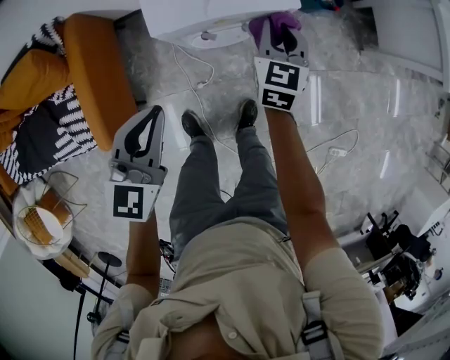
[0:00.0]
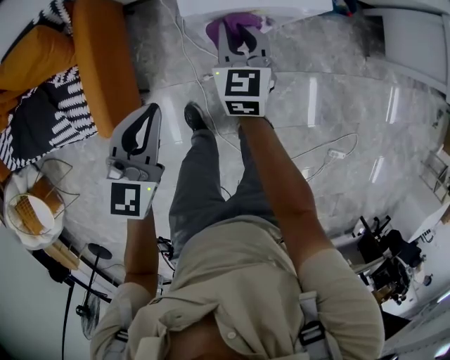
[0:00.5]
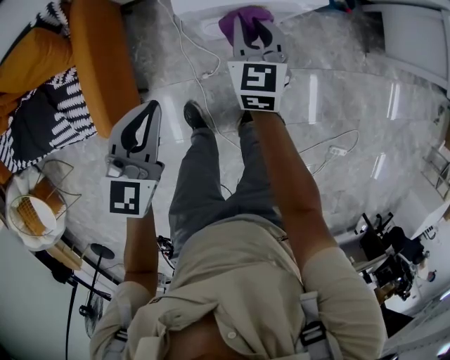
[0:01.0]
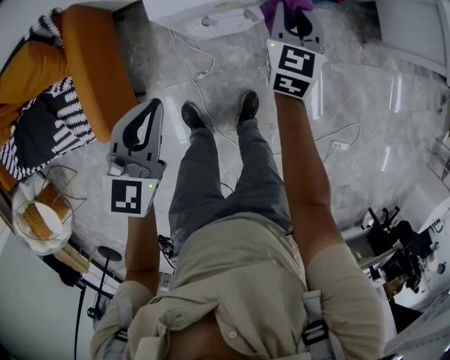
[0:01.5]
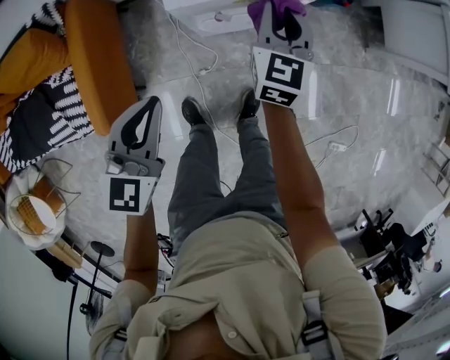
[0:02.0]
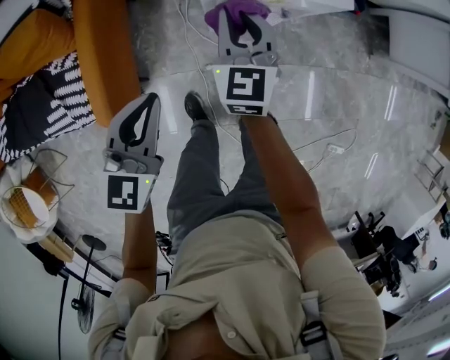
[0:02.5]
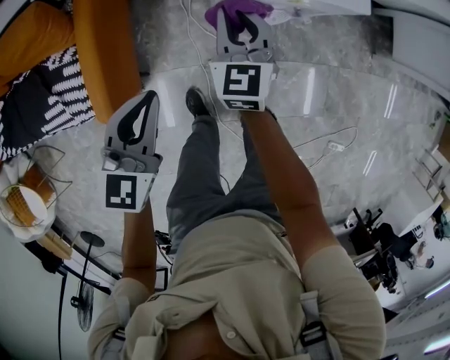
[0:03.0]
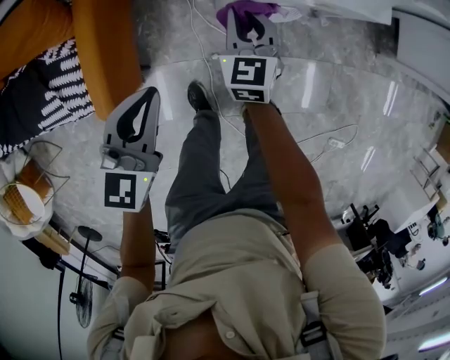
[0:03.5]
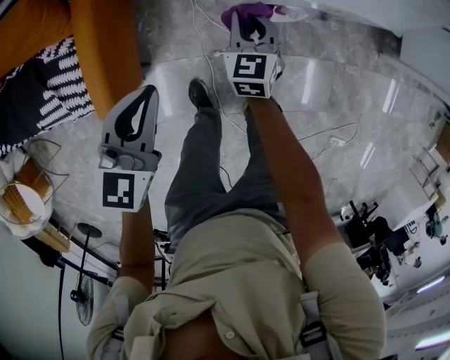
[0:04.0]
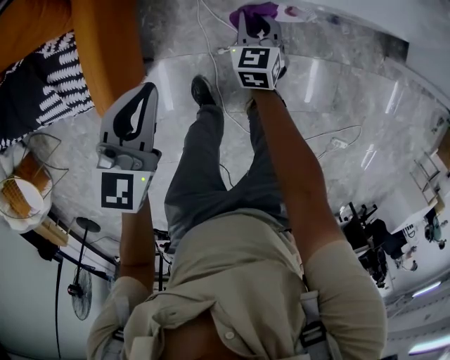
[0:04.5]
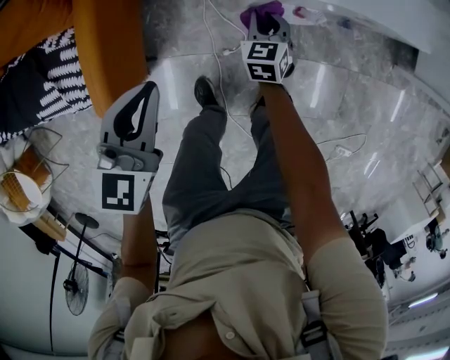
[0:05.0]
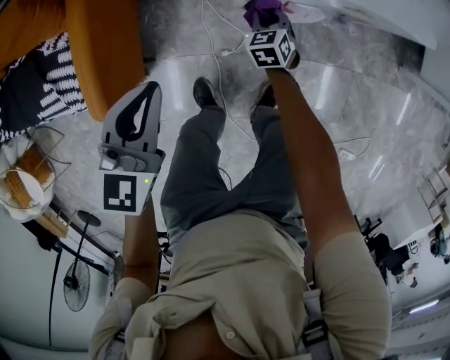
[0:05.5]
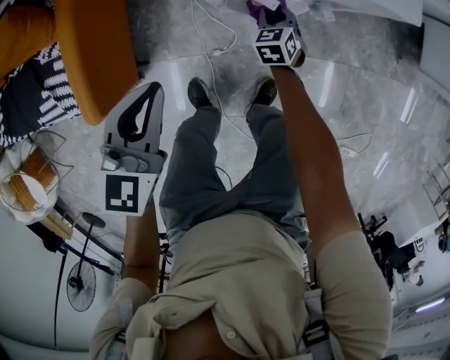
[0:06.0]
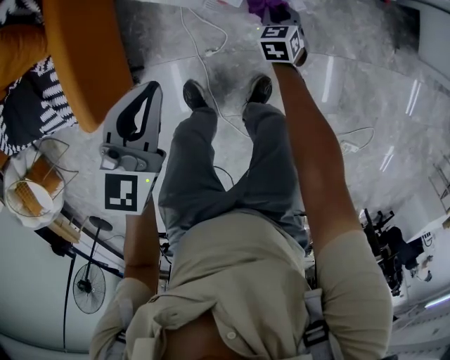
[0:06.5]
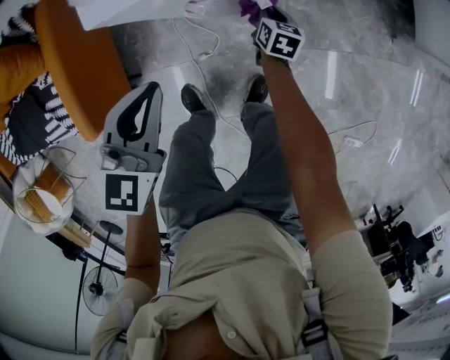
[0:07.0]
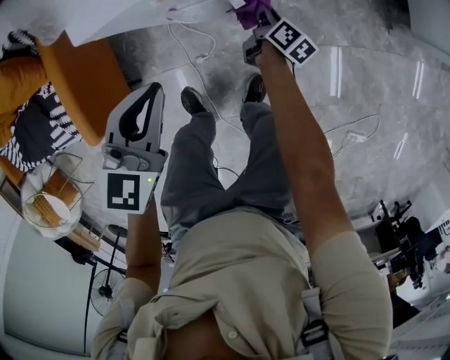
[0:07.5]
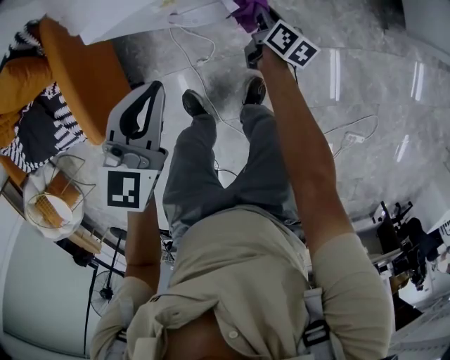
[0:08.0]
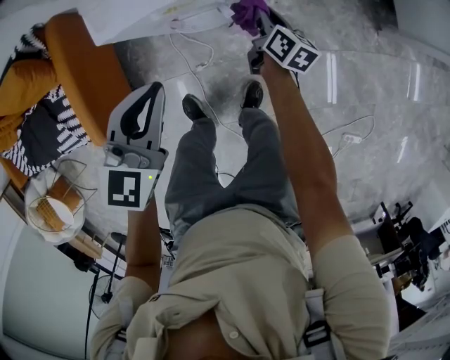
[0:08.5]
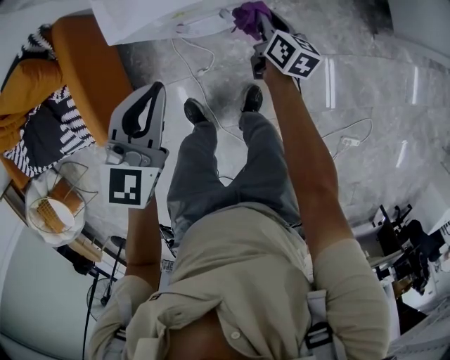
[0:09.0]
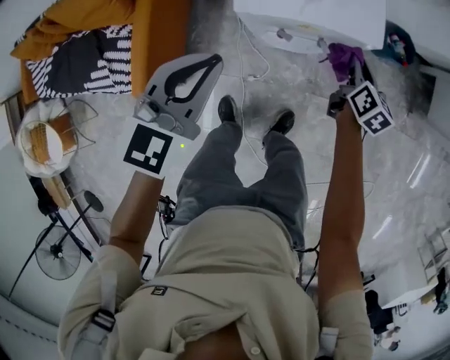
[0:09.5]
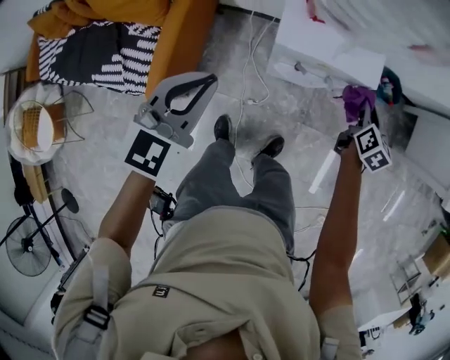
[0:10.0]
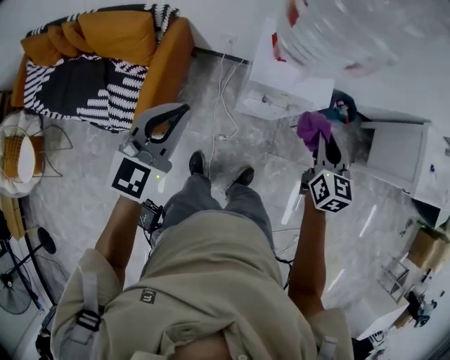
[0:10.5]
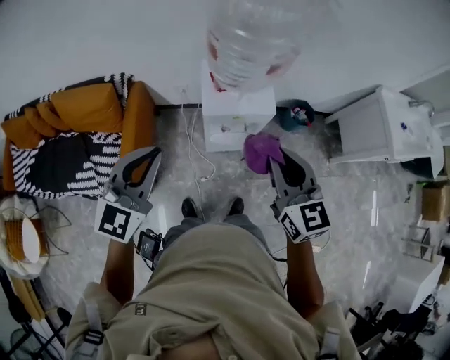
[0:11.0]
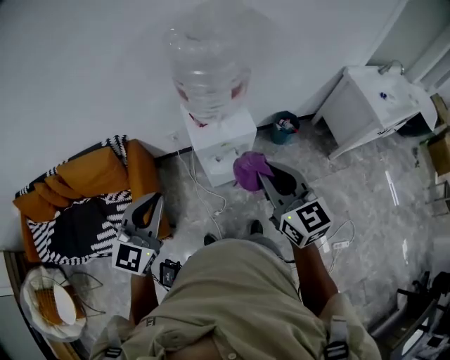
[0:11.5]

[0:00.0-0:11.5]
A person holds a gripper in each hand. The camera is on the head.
0:00.0 to 0:02.0: The right gripper goes left and right, roughly 15 cm each way, reversing 2 times.
0:02.0 to 0:04.0: The right gripper shifts roughly 25 cm to the left and downward, and rotates some 20 degrees. The left gripper travels to the left and downward by about 15 cm.
0:04.0 to 0:06.0: The left gripper travels to the right and downward by about 10 cm. The right gripper is displaced downward and to the right by some 25 cm.
0:06.0 to 0:07.5: Both grippers travel together to the right, some 15 cm. The right gripper twists about 80 degrees clockwise, seen from behind.
0:07.5 to 0:09.5: The left gripper shifts about 15 cm upward and to the left; the right gripper moves upward, roughly 25 cm, and turns by roughly 30 degrees.
0:09.5 to 0:11.5: The left gripper travels upward and backward by approximately 35 cm, and changes its angle by roughly 20 degrees. Meanwhile the right gripper is displaced upward and backward by roughly 60 cm, and turns by approximately 40 degrees.

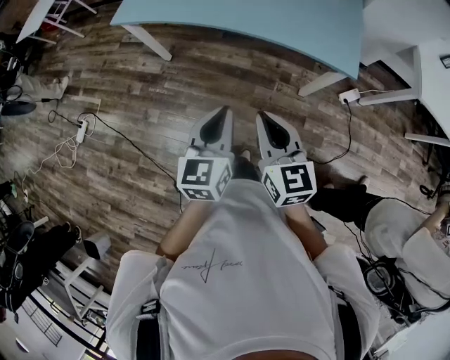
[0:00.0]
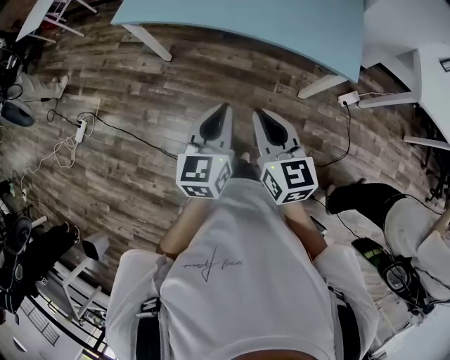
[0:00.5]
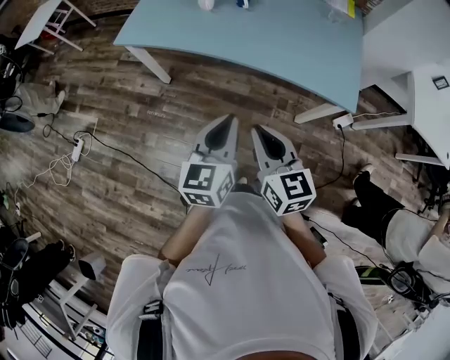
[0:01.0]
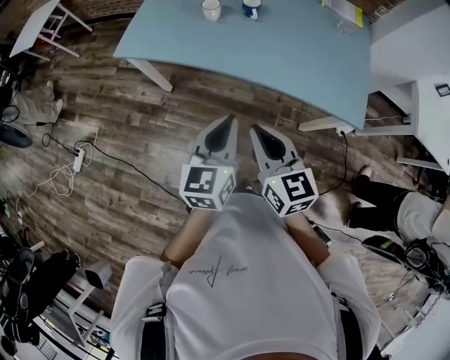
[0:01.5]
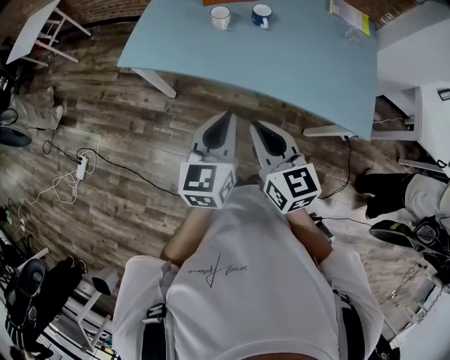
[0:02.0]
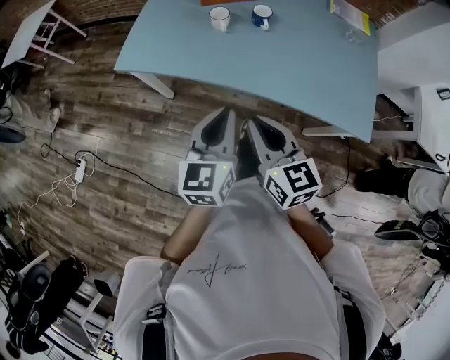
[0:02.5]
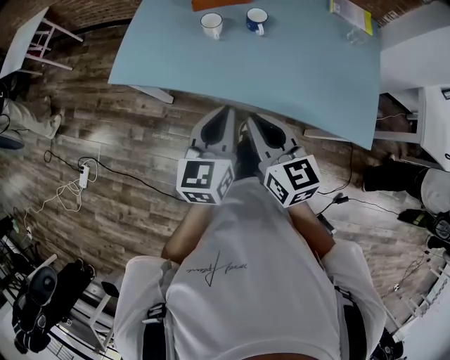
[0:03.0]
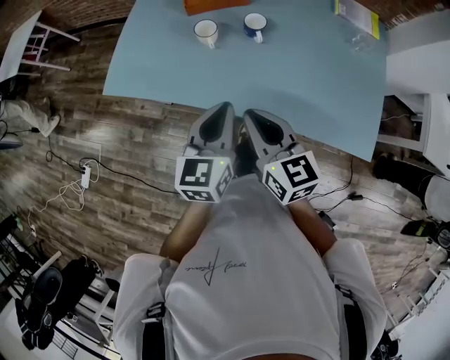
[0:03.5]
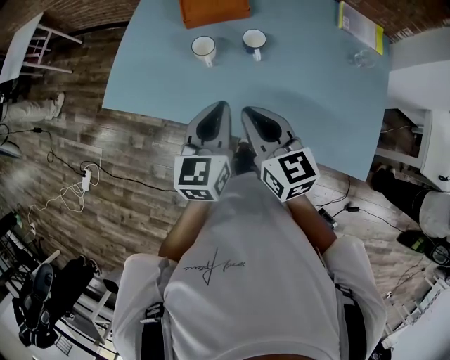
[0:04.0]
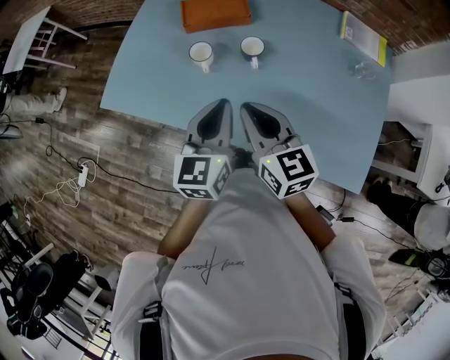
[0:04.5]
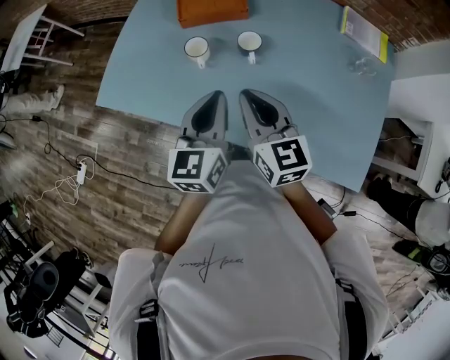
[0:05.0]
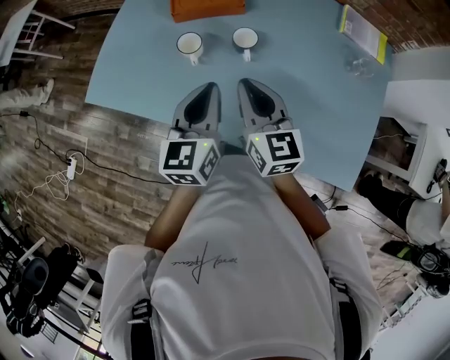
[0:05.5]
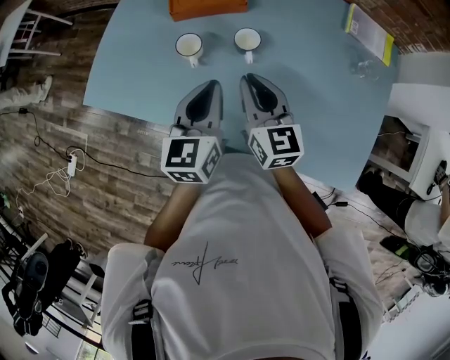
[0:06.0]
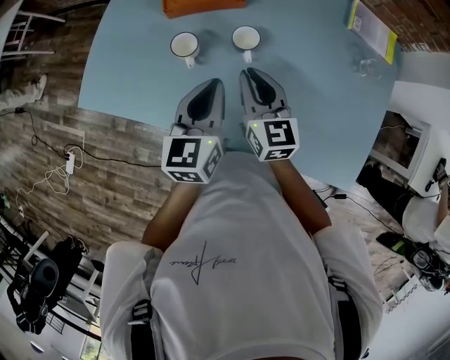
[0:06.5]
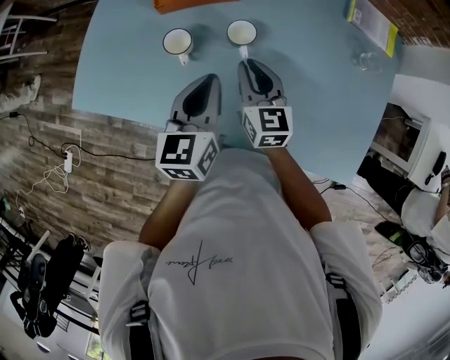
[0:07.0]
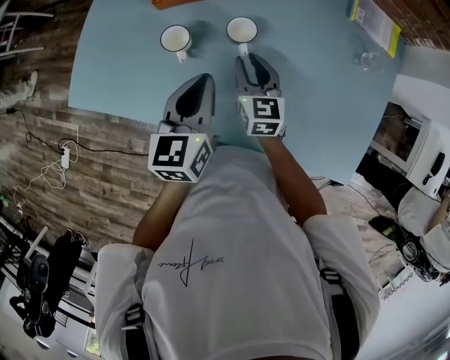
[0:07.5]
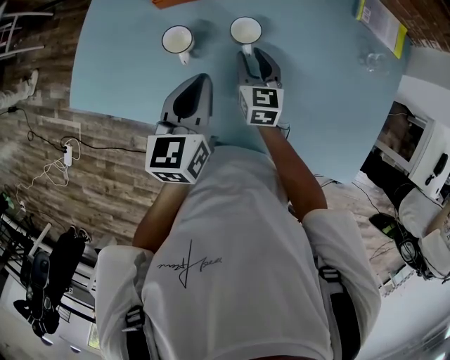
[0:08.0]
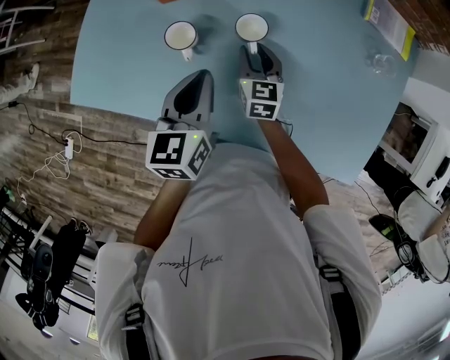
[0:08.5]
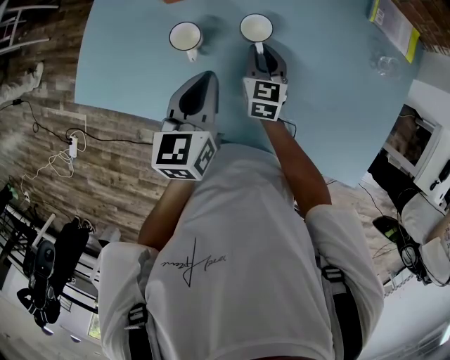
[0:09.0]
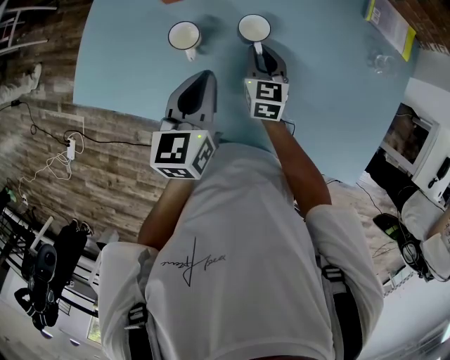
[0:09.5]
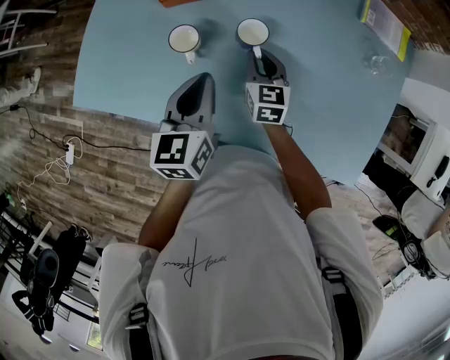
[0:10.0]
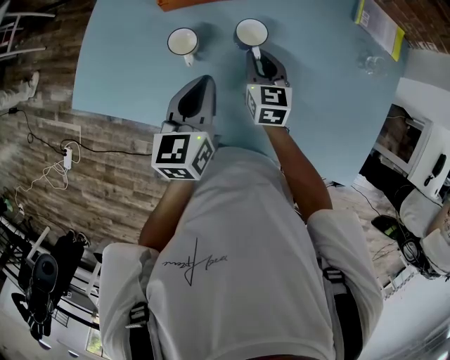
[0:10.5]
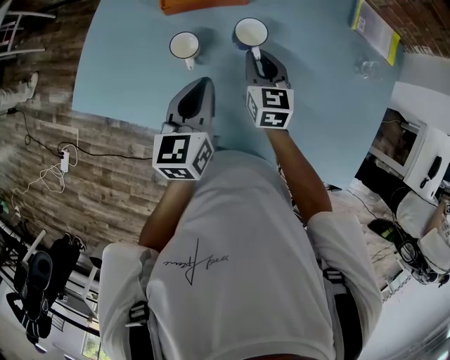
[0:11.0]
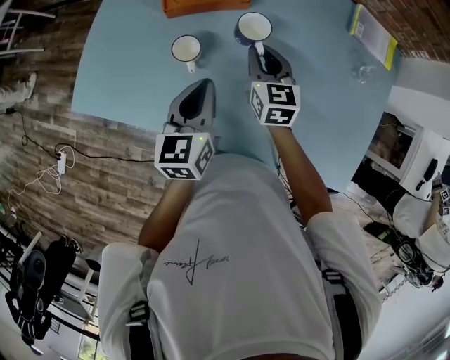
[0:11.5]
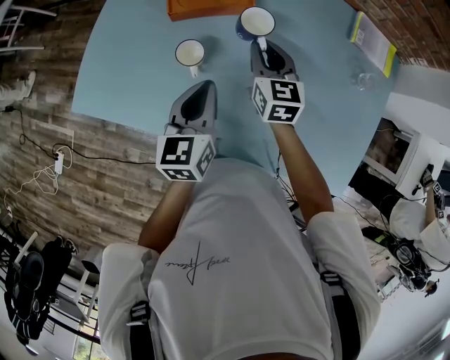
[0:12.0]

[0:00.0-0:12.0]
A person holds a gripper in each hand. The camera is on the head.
0:00.0 to 0:02.0: The grippers both shift forward and to the left by roughly 25 cm.
0:02.0 to 0:04.0: Both grippers move forward, roughly 20 cm.
0:04.0 to 0:06.0: The left gripper shifts roughly 10 cm forward, while the right gripper is displaced forward and to the right by approximately 10 cm.
0:06.0 to 0:08.0: The right gripper travels downward and forward by about 15 cm, and opens its fingers.
0:08.0 to 0:10.0: The grippers make only small movements.
0:10.0 to 0:12.0: The right gripper heads upward and forward, covering about 10 cm.

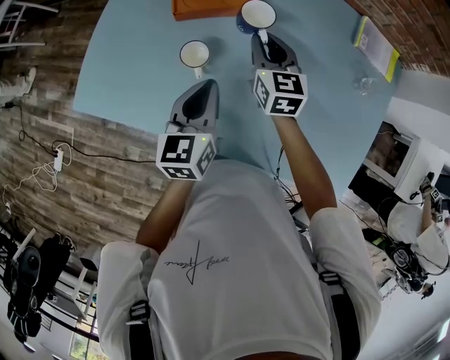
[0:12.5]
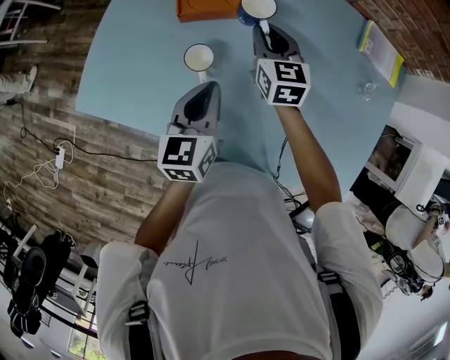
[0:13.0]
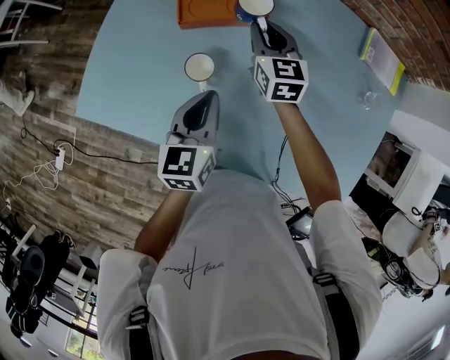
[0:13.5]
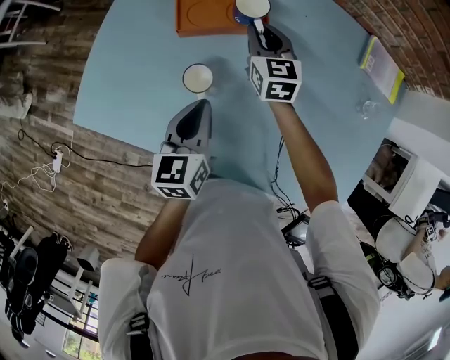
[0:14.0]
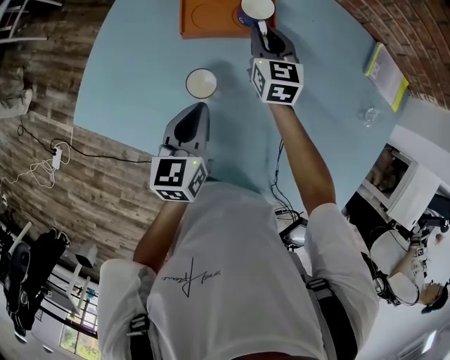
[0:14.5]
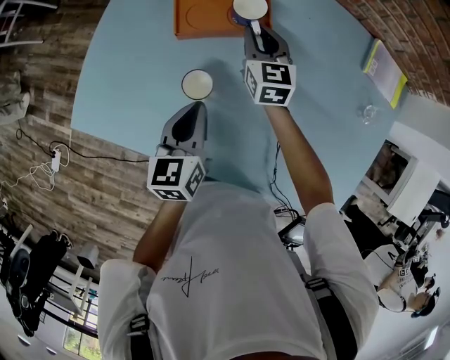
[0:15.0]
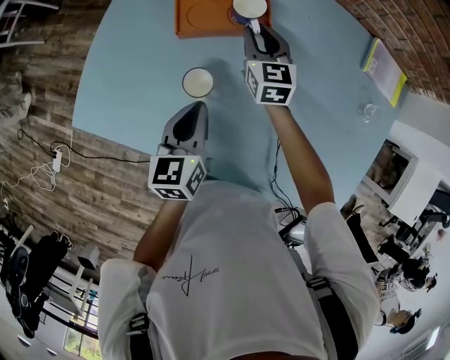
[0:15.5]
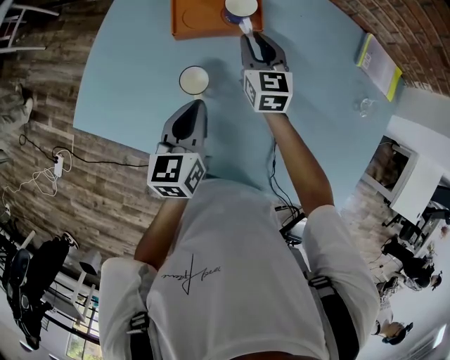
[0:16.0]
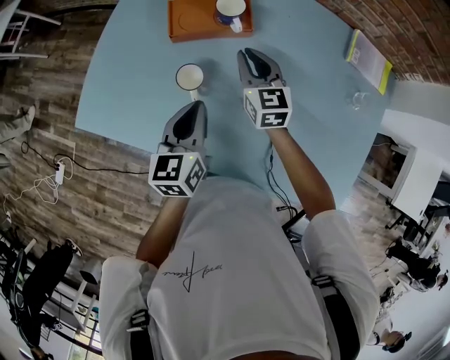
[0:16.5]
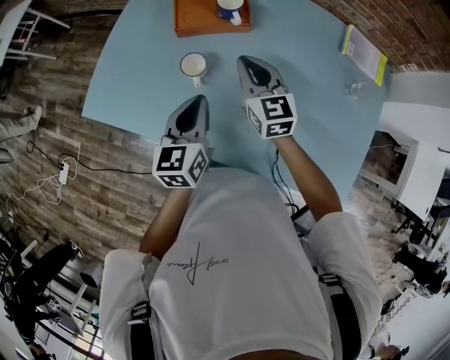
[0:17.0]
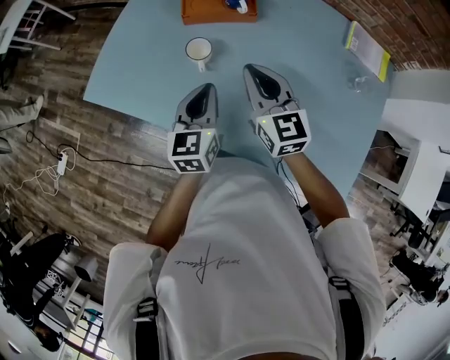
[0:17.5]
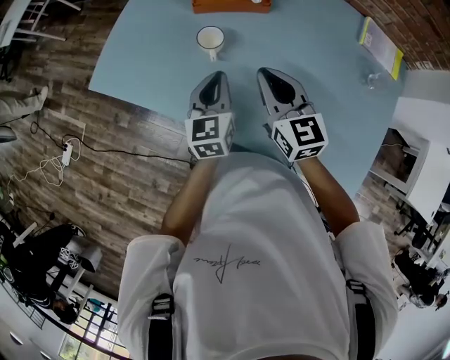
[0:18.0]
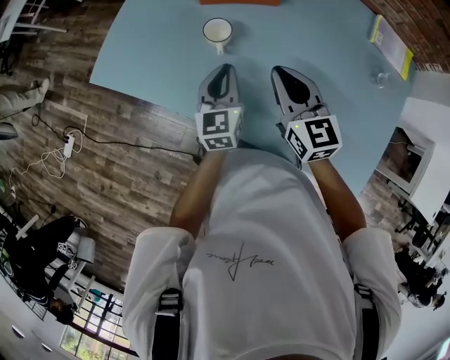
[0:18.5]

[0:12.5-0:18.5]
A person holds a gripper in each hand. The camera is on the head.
0:12.5 to 0:14.5: The right gripper moves forward, about 10 cm; the left gripper changes place by roughly 5 cm.
0:14.5 to 0:16.5: The right gripper is displaced backward by some 10 cm.
0:16.5 to 0:18.5: The left gripper is displaced downward by some 5 cm. The right gripper goes some 15 cm backward.
